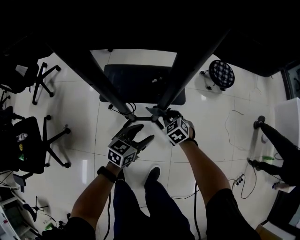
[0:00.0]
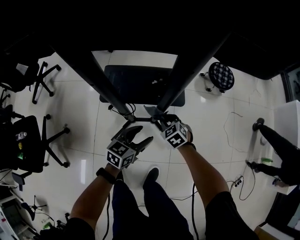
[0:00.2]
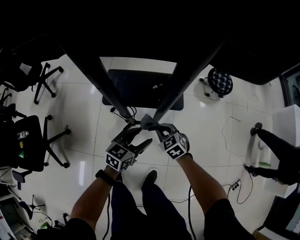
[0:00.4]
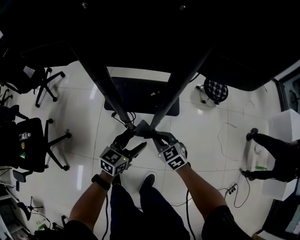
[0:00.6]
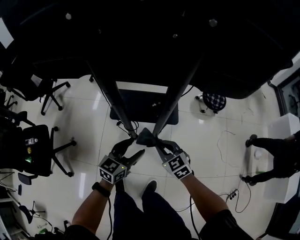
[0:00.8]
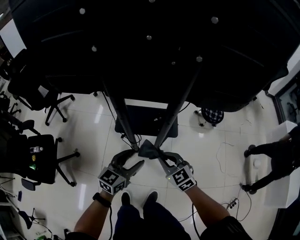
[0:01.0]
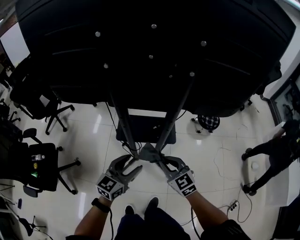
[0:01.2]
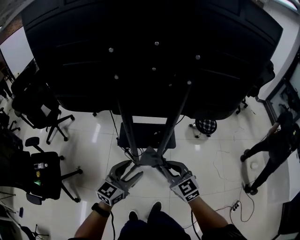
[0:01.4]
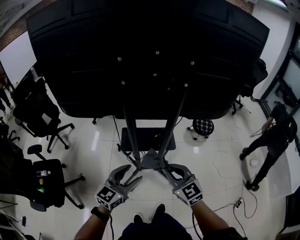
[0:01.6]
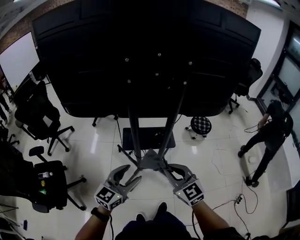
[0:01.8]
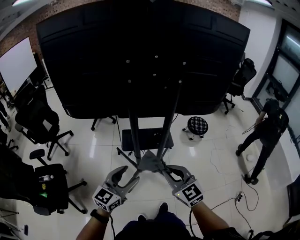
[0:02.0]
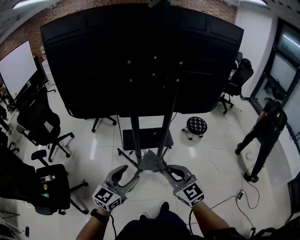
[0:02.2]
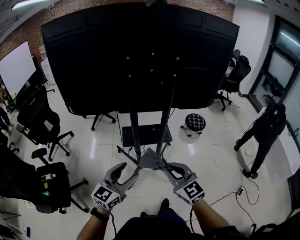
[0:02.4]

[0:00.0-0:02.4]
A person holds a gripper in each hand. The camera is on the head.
0:00.0 to 0:01.2: Both grippers travel together upward, roughly 30 cm. The left gripper turns by approximately 20 degrees, while the right gripper swivels some 30 degrees.
0:01.2 to 0:02.4: The left gripper moves backward, upward and to the left, roughly 25 cm; the right gripper moves backward and upward, some 25 cm.

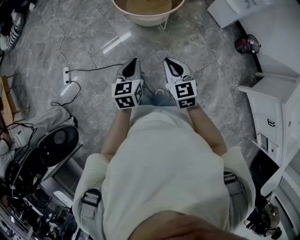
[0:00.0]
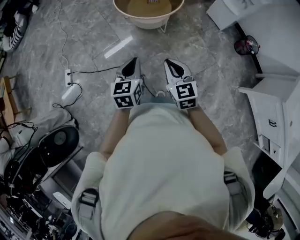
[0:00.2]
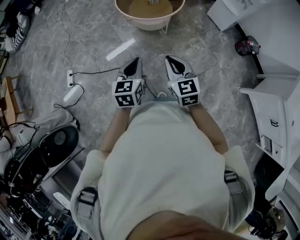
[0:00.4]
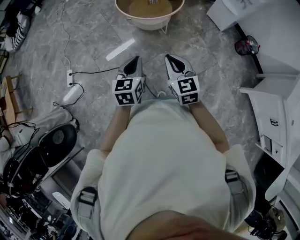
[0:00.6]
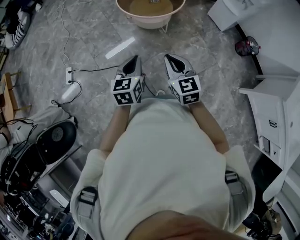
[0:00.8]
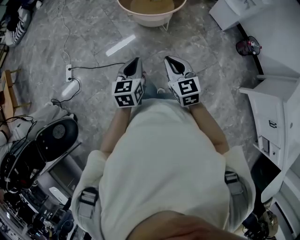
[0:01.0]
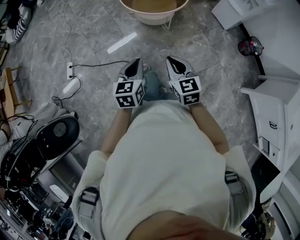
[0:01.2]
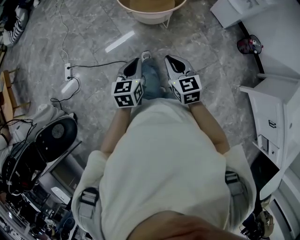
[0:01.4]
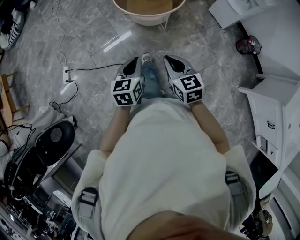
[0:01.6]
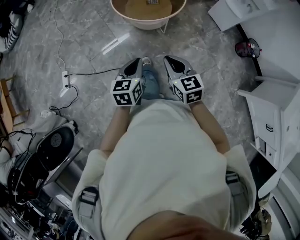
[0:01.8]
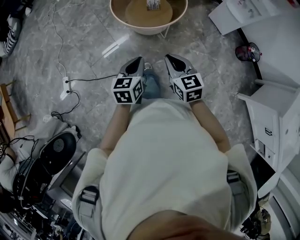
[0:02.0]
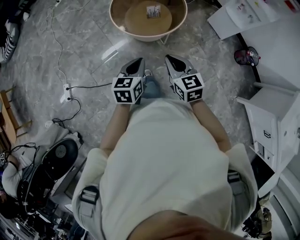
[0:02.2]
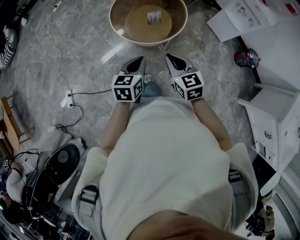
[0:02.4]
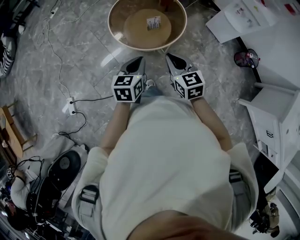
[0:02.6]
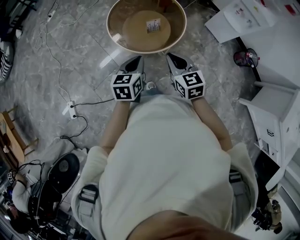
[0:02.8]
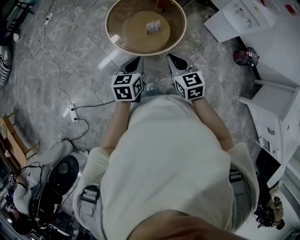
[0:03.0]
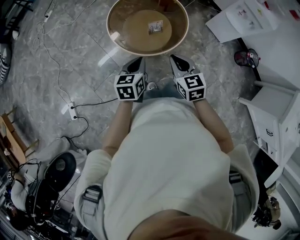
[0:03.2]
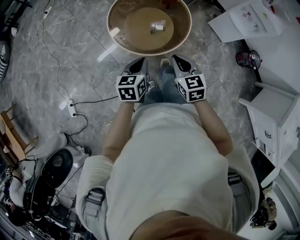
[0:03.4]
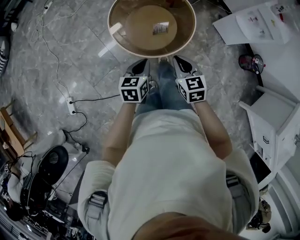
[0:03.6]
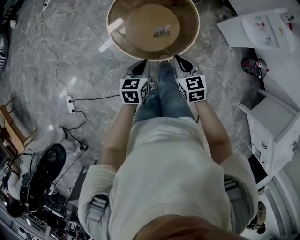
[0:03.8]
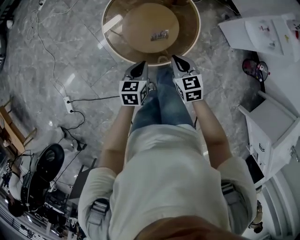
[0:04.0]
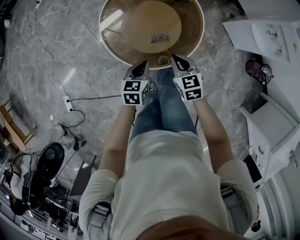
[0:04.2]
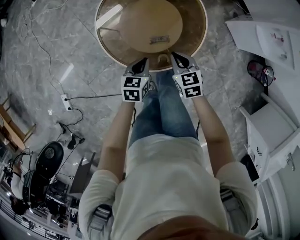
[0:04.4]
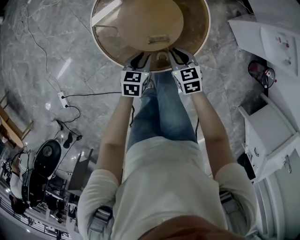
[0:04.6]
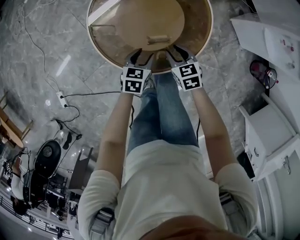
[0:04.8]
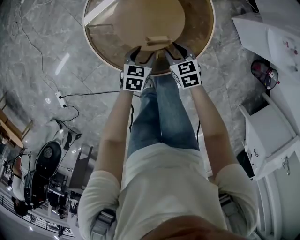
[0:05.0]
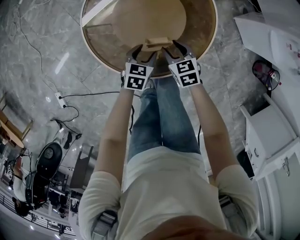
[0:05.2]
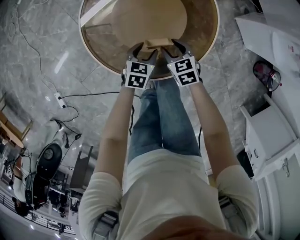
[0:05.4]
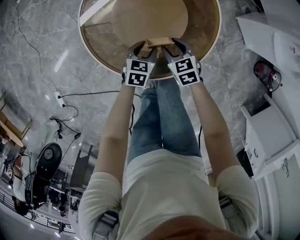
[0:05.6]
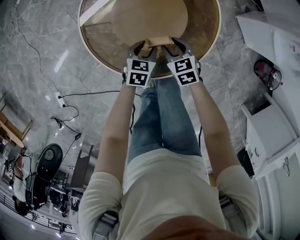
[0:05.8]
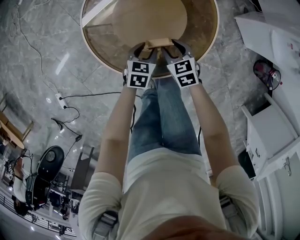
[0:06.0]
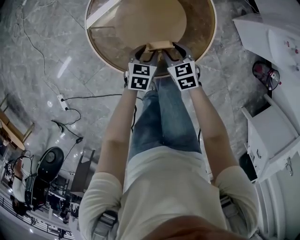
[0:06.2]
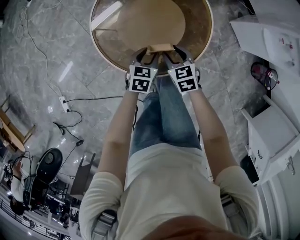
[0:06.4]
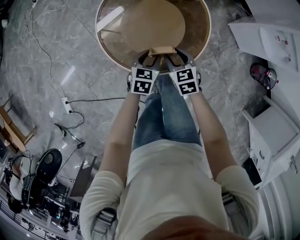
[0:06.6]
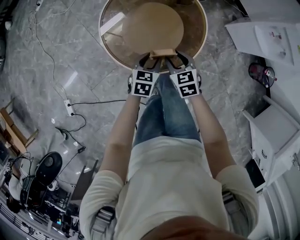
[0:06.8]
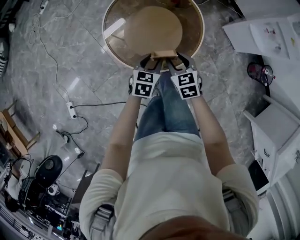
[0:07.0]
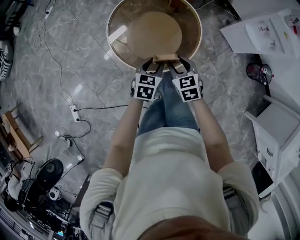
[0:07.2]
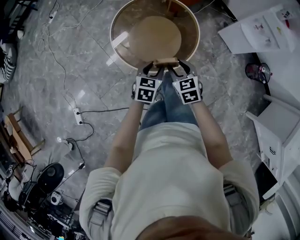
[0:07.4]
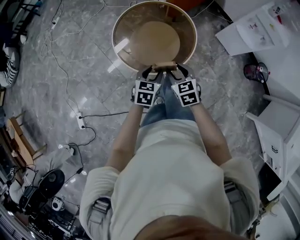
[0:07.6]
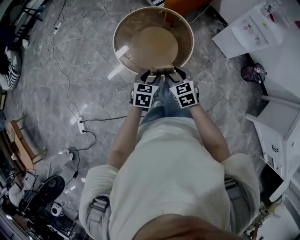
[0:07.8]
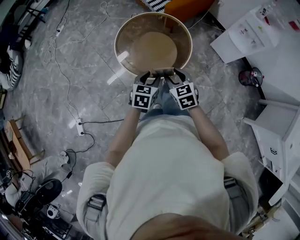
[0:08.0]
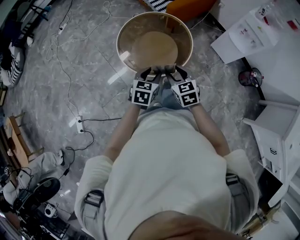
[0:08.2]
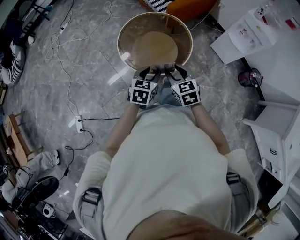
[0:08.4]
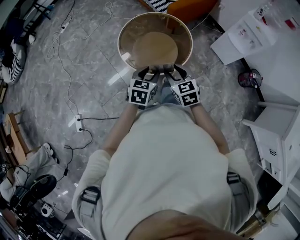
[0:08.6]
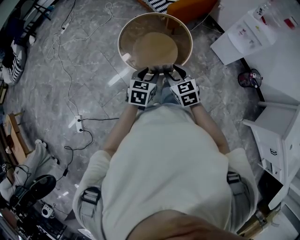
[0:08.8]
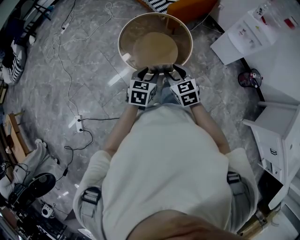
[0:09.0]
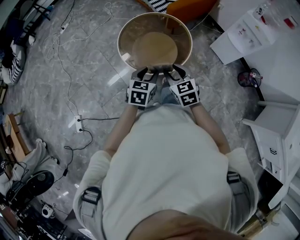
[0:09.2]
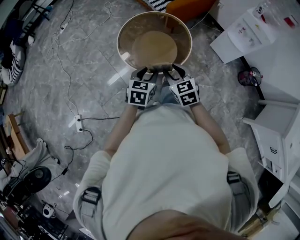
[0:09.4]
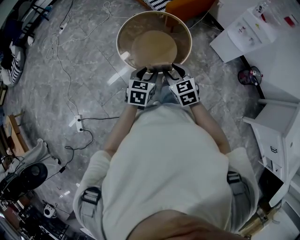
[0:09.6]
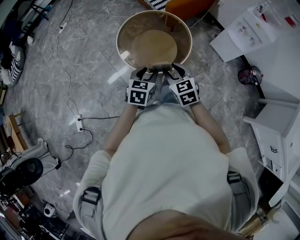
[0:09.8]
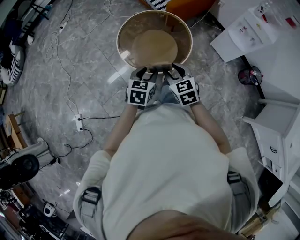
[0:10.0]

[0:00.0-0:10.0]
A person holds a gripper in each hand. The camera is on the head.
0:00.0 to 0:01.4: There are only small adjustments of the grippers.
0:01.4 to 0:02.8: Both grippers travel together forward, about 35 cm.
0:02.8 to 0:04.2: The grippers both shift downward and forward by about 25 cm.
0:04.2 to 0:05.8: The grippers both shift downward and forward by about 20 cm. The left gripper opens its fingers. Meanwhile the right gripper opens up.
0:05.8 to 0:07.2: Both grippers move upward and backward, some 25 cm.
0:07.2 to 0:08.6: The two grippers go roughly 20 cm upward and backward.
0:08.6 to 0:10.0: Both grippers stay put.

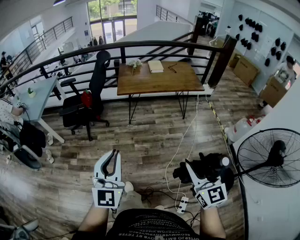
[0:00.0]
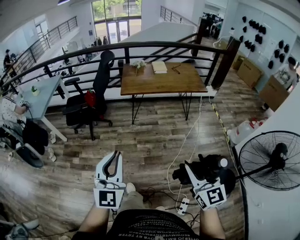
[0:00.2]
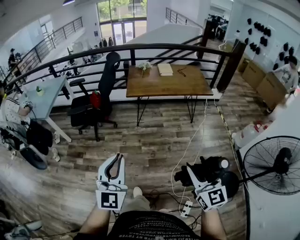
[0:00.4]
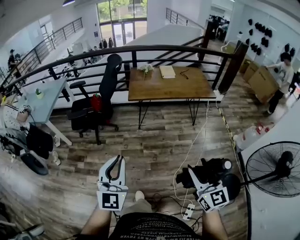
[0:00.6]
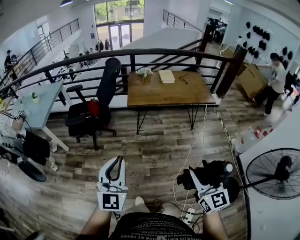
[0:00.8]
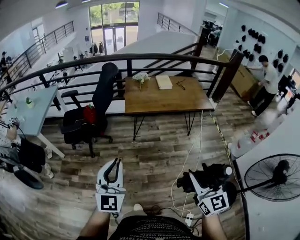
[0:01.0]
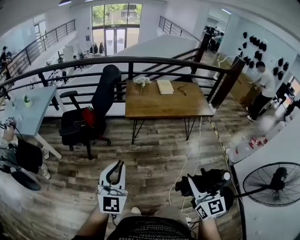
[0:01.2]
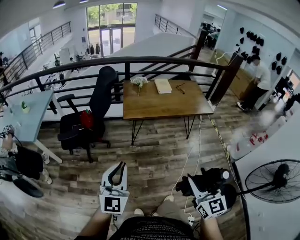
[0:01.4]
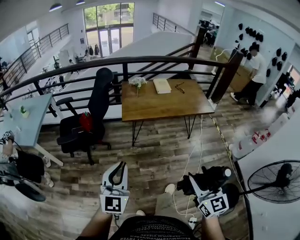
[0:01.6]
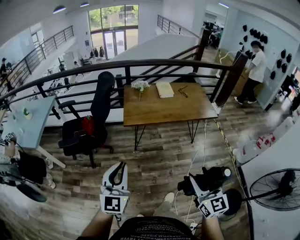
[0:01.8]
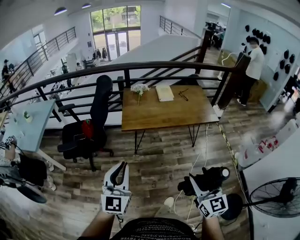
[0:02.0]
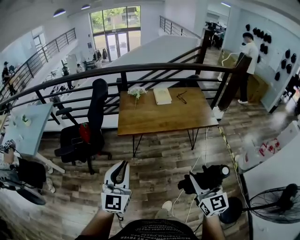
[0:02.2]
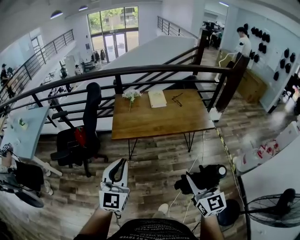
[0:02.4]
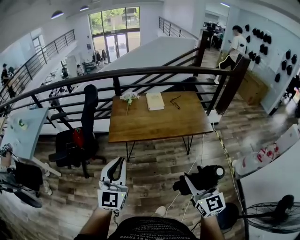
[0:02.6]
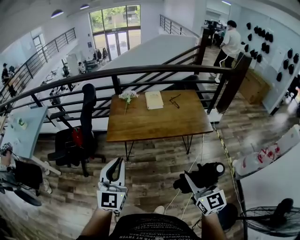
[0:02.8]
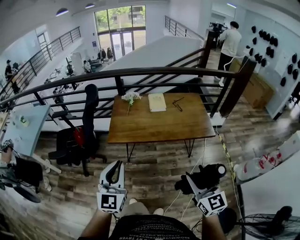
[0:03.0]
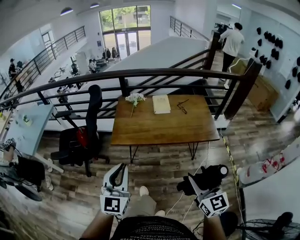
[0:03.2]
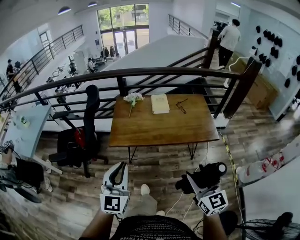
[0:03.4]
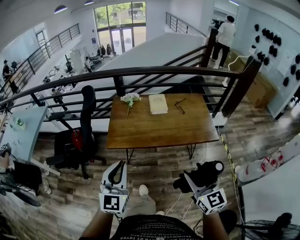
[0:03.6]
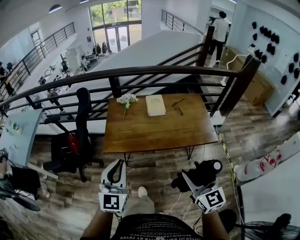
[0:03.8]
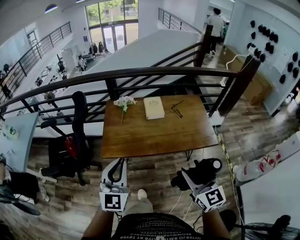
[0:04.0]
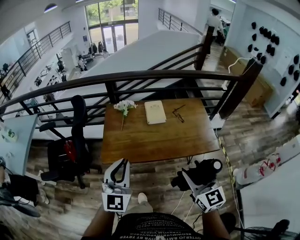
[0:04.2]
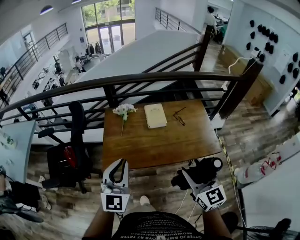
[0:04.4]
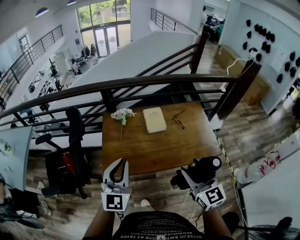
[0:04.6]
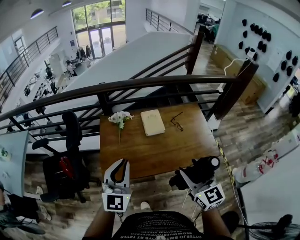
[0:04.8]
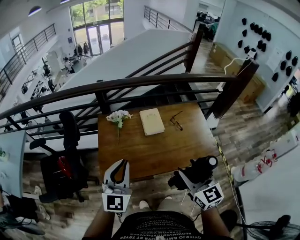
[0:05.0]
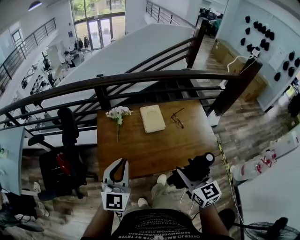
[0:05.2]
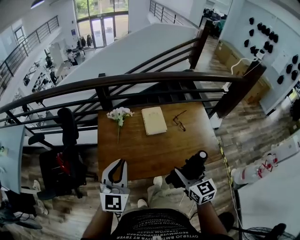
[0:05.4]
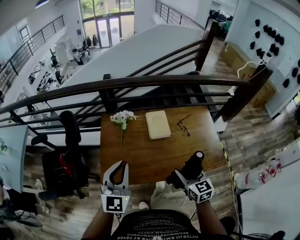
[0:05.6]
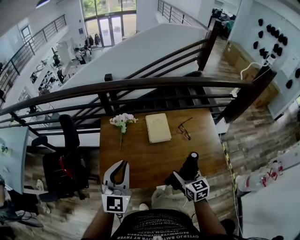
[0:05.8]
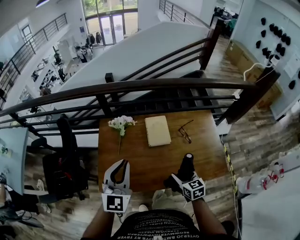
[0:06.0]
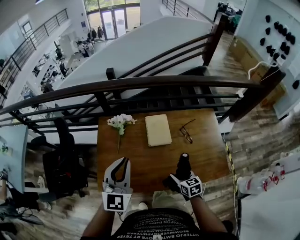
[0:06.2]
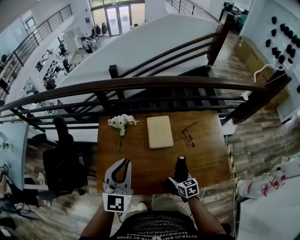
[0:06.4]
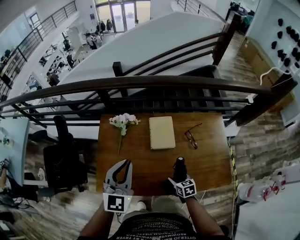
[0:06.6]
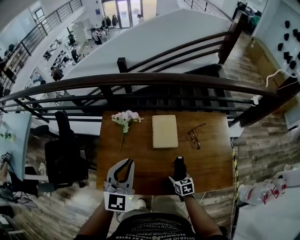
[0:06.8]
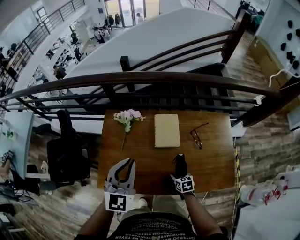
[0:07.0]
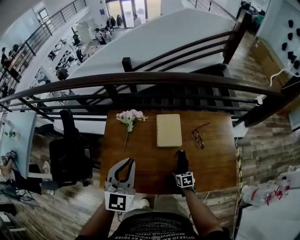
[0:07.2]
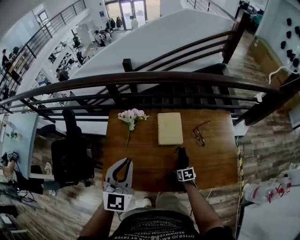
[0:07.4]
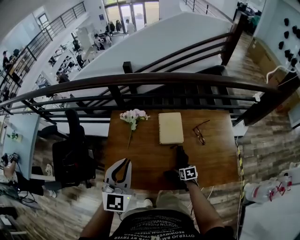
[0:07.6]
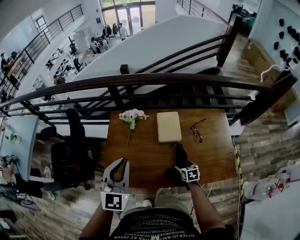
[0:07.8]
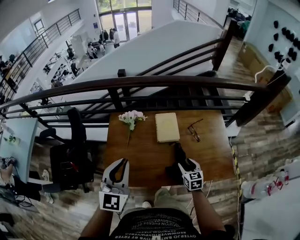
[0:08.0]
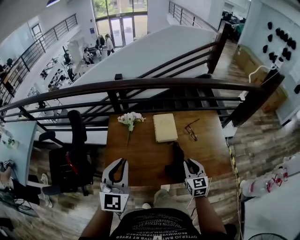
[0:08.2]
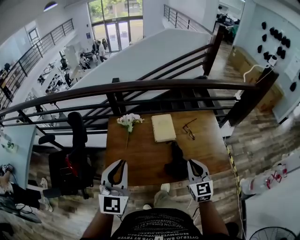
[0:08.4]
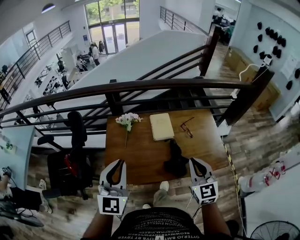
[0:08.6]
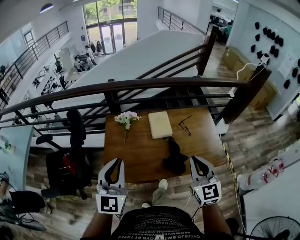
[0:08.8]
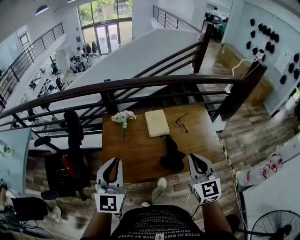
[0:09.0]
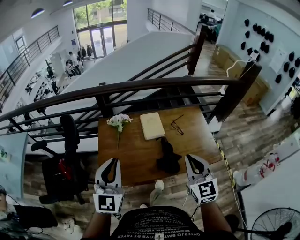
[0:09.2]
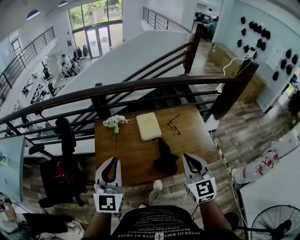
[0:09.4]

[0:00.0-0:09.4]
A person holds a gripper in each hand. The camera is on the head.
0:00.0 to 0:01.6: Both grippers move forward, about 20 cm.
0:01.6 to 0:03.2: Both grippers travel together forward and to the right, approximately 30 cm.
0:03.2 to 0:04.8: The grippers both shift forward by about 30 cm.
0:04.8 to 0:06.2: The right gripper moves downward and forward, about 35 cm, and points its fingers approximately 30 degrees further downward. Meanwhile the left gripper heads forward, covering about 15 cm.
0:06.2 to 0:07.8: The right gripper shifts roughly 10 cm downward.
0:07.8 to 0:09.4: The left gripper moves backward and upward, some 10 cm. The right gripper travels upward by about 40 cm, angles its fingers upward, by approximately 40 degrees, and closes.

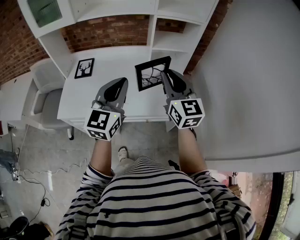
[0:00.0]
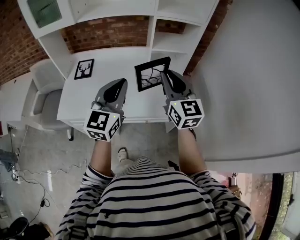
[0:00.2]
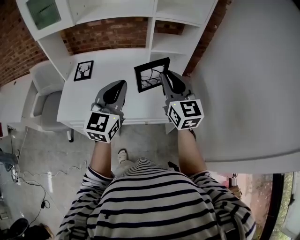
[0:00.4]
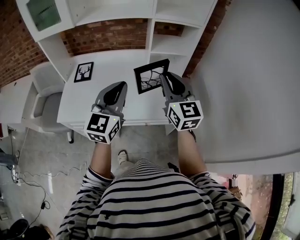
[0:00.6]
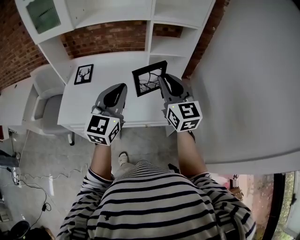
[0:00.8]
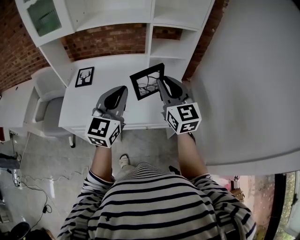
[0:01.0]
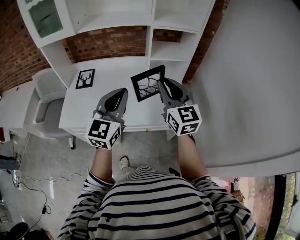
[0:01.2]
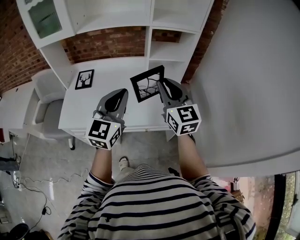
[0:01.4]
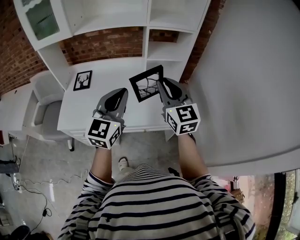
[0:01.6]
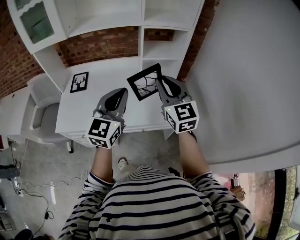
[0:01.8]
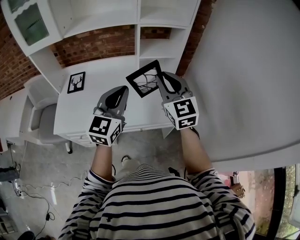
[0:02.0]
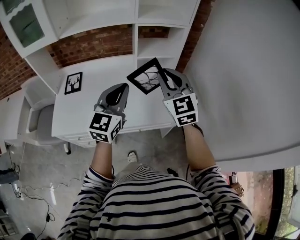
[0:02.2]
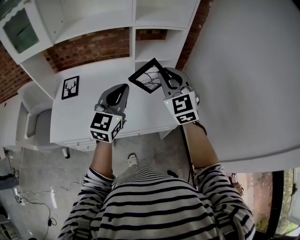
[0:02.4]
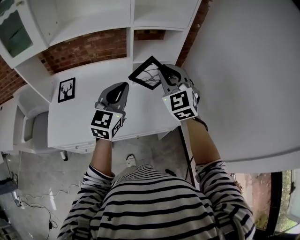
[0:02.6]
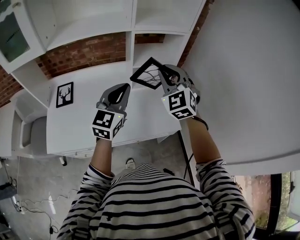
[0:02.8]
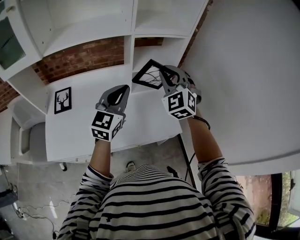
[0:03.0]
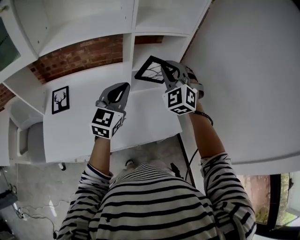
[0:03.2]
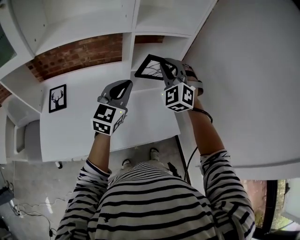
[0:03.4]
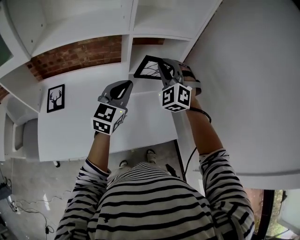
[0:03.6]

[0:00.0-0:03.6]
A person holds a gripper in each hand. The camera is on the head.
0:00.0 to 0:01.8: The grippers make only small movements.
0:01.8 to 0:03.6: Both grippers move forward, some 25 cm. The right gripper rotates around the line of its fingers by approximately 50 degrees, counterclockwise from behind.
